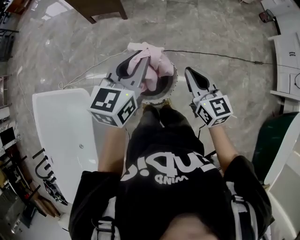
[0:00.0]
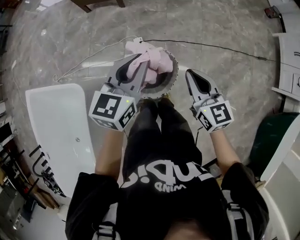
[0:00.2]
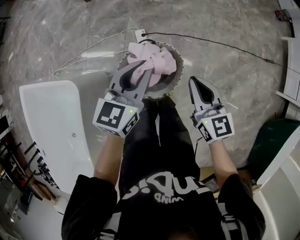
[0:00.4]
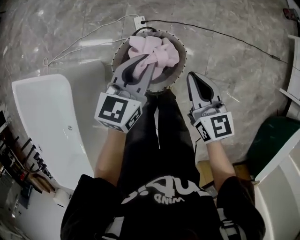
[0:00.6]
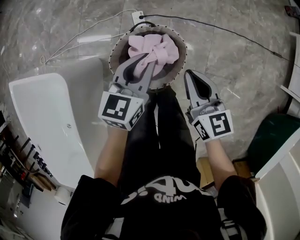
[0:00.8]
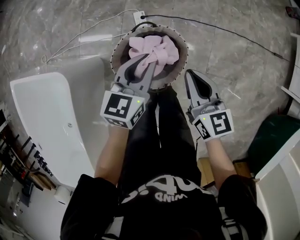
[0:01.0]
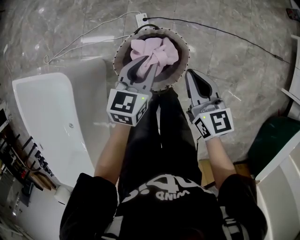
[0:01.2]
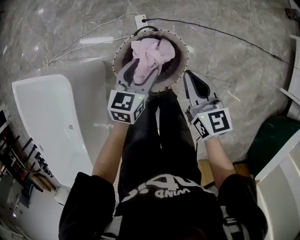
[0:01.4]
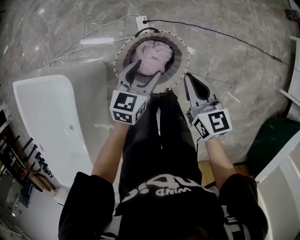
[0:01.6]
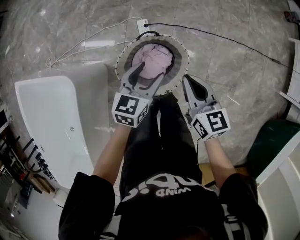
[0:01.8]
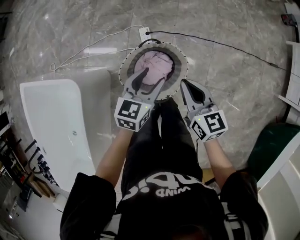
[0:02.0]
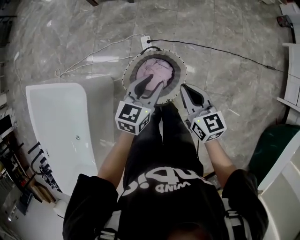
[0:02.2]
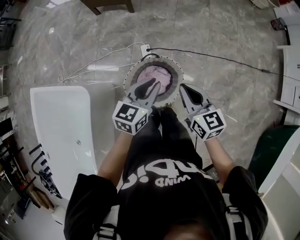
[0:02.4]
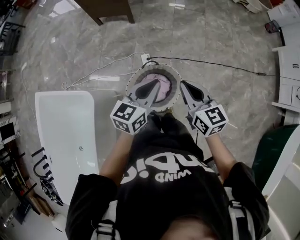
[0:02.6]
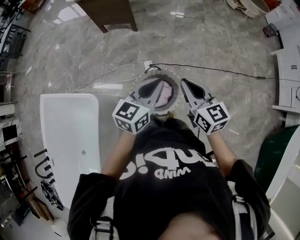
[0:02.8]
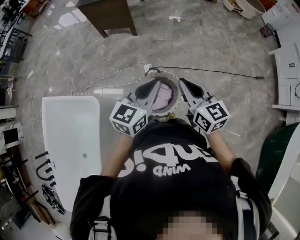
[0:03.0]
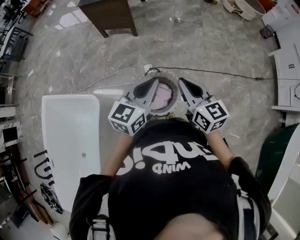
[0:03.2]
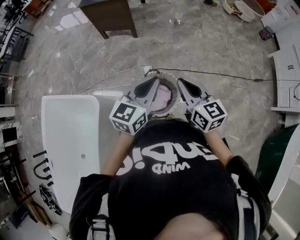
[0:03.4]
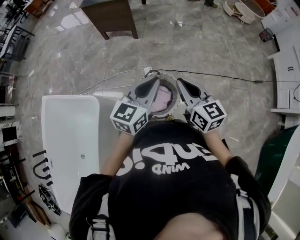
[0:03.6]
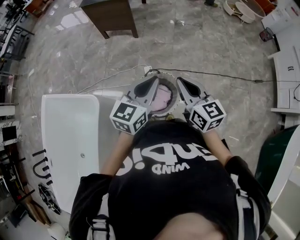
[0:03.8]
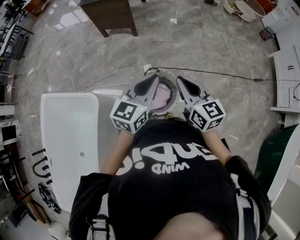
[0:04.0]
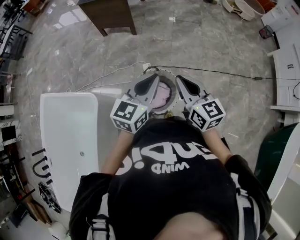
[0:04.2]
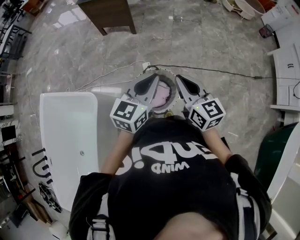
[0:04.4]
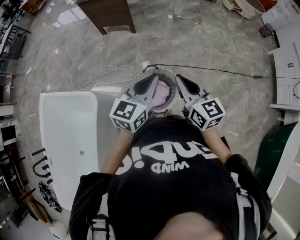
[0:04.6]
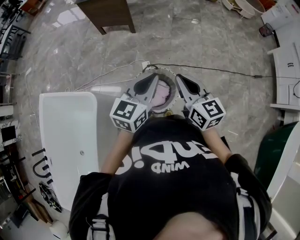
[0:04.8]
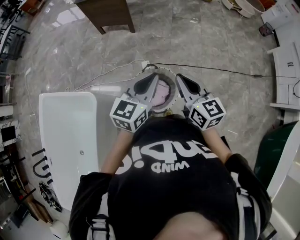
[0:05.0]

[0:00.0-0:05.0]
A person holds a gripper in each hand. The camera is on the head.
0:00.0 to 0:01.6: The right gripper heads downward, covering roughly 20 cm; the left gripper shifts roughly 35 cm downward, and opens its fingers.
0:01.6 to 0:03.4: Both grippers move upward, roughly 25 cm. The left gripper rotates about 20 degrees, and closes its fingers.
0:03.4 to 0:05.0: The two grippers keep their place.

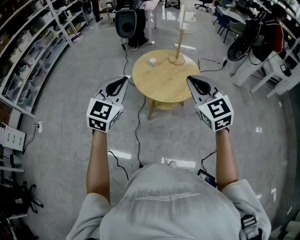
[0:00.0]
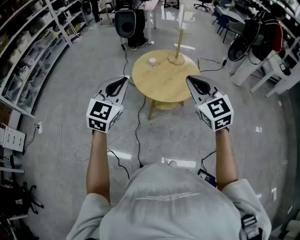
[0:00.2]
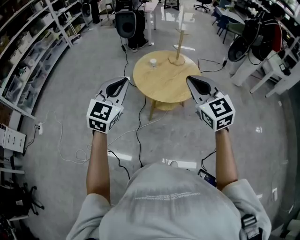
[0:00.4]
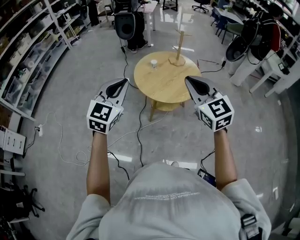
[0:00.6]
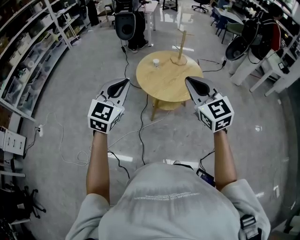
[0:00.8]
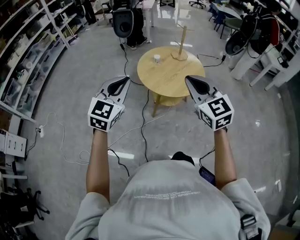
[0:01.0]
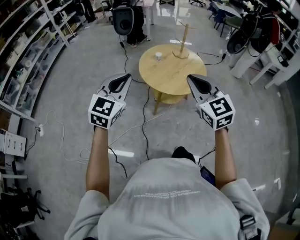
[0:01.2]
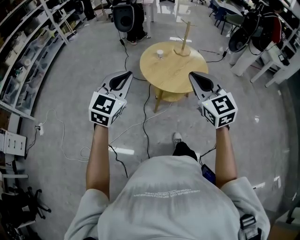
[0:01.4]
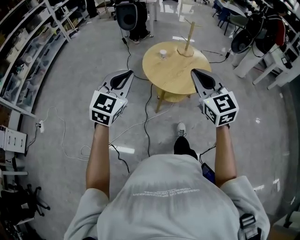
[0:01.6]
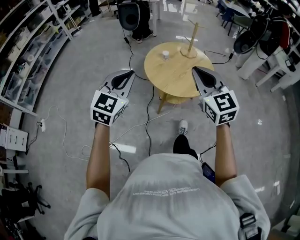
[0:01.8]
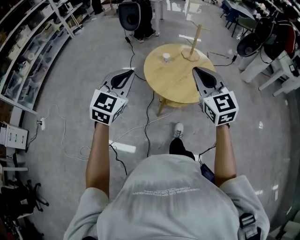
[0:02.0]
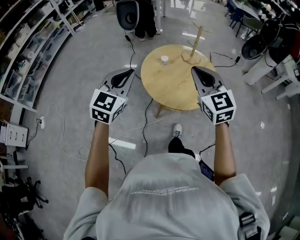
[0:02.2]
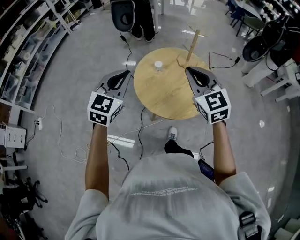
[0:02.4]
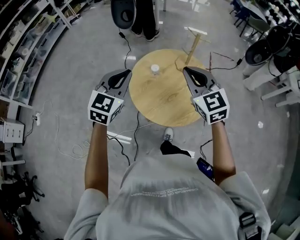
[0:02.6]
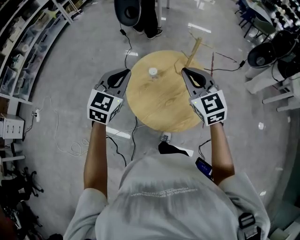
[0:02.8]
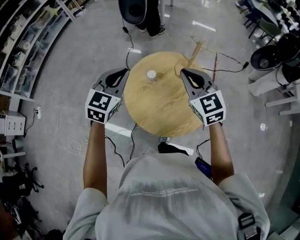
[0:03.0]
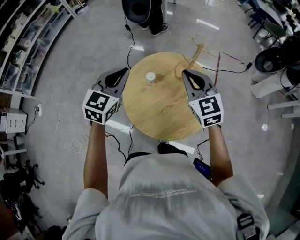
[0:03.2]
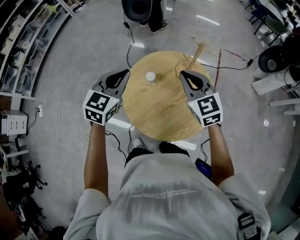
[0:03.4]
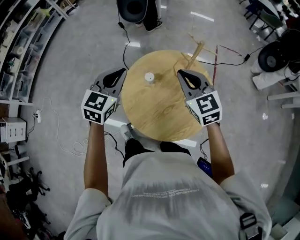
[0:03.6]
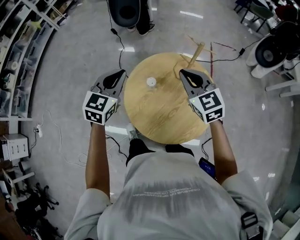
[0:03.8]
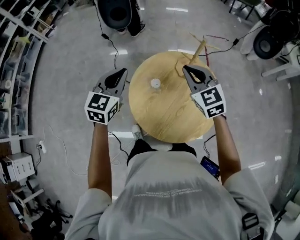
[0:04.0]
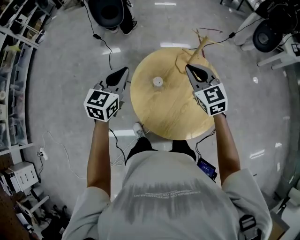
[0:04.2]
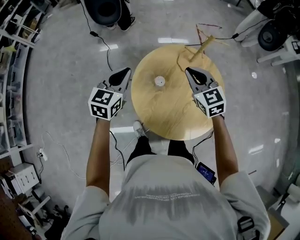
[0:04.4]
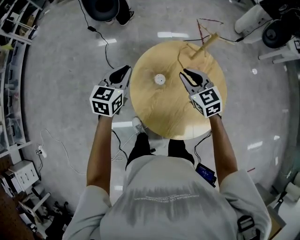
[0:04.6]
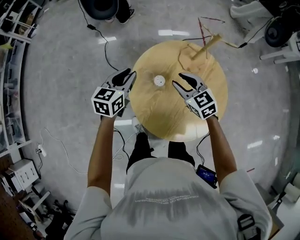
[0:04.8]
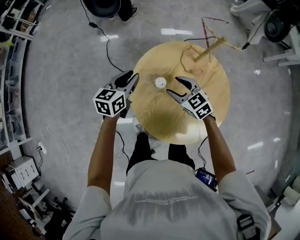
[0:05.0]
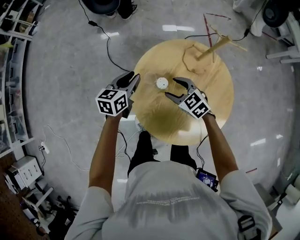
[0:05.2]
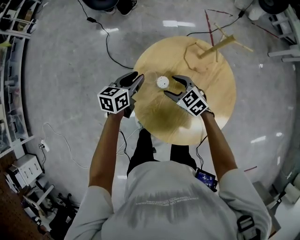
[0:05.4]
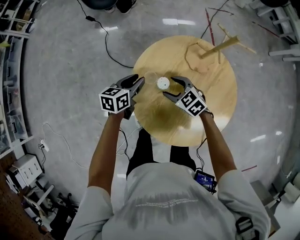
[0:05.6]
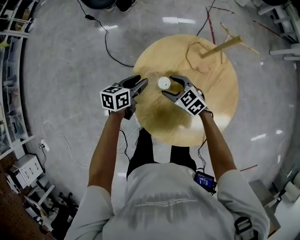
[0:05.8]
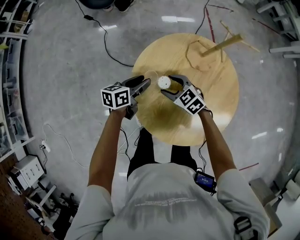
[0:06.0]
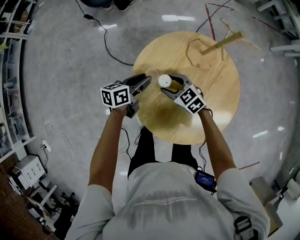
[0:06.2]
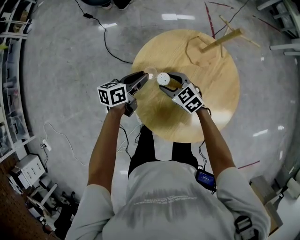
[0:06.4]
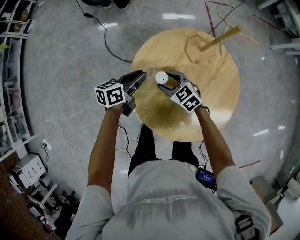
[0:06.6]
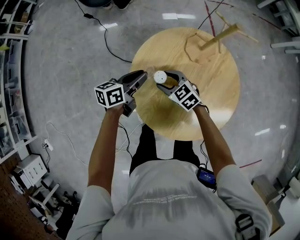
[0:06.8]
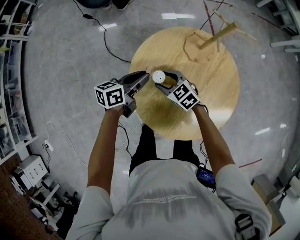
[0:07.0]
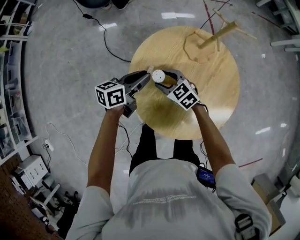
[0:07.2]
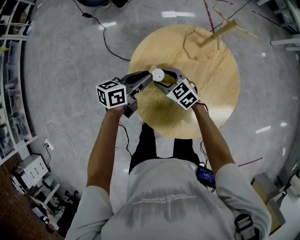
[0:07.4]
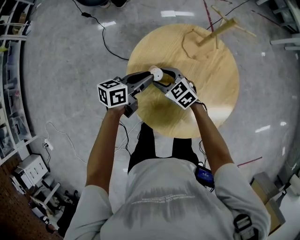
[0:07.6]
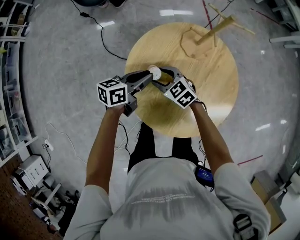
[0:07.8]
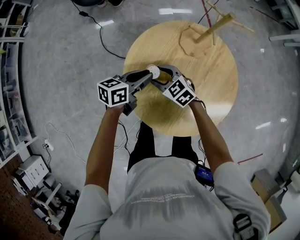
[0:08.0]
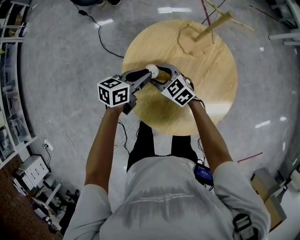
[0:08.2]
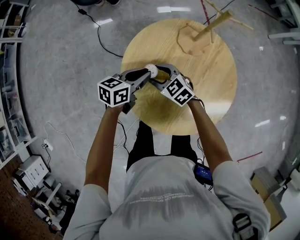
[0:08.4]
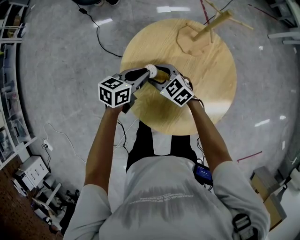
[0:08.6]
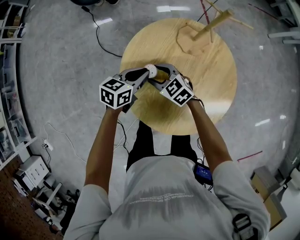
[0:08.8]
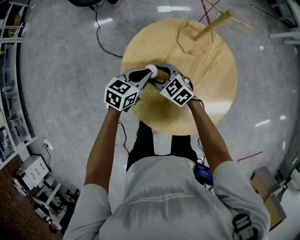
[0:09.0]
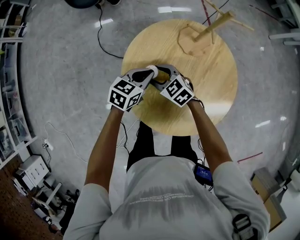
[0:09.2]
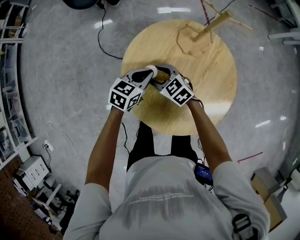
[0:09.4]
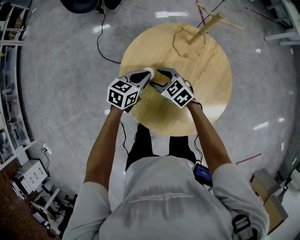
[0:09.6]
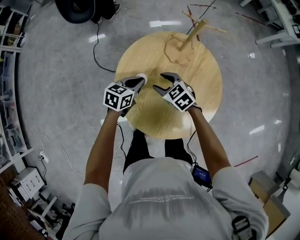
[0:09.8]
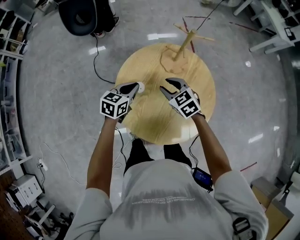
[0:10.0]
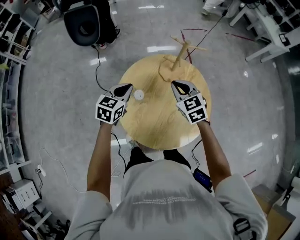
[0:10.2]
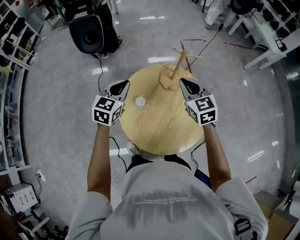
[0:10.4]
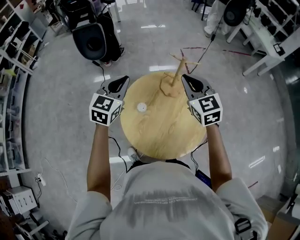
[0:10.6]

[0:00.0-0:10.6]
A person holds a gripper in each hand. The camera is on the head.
0:00.0 to 0:01.6: The two grippers go approximately 10 cm to the left.
0:01.6 to 0:03.0: The two grippers go about 40 cm forward.
0:03.0 to 0:04.6: The left gripper goes about 25 cm forward and downward, and changes its angle by about 30 degrees, while the right gripper moves downward and forward, approximately 20 cm, and swivels some 30 degrees.
0:04.6 to 0:06.0: The left gripper moves downward, approximately 15 cm, changes its angle by approximately 40 degrees, and opens up, while the right gripper is displaced downward and to the left by roughly 20 cm, turns by some 30 degrees, and opens up.
0:06.0 to 0:07.6: The left gripper changes place by roughly 5 cm, and closes up.
0:07.6 to 0:09.0: The left gripper swivels some 30 degrees.
0:09.0 to 0:10.6: The left gripper is displaced upward by roughly 30 cm, and turns by about 40 degrees, while the right gripper shifts approximately 40 cm upward and to the right, rotates about 40 degrees, and closes its fingers.

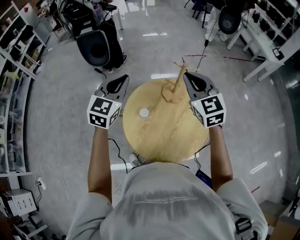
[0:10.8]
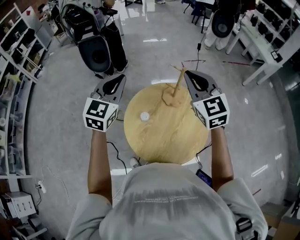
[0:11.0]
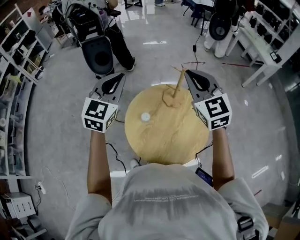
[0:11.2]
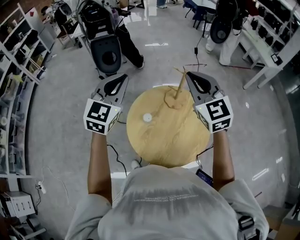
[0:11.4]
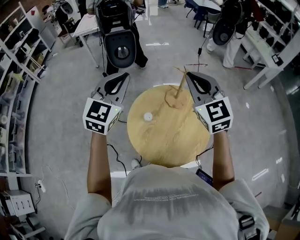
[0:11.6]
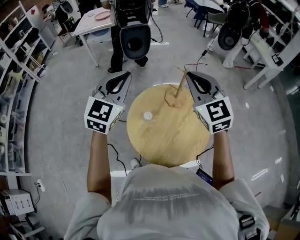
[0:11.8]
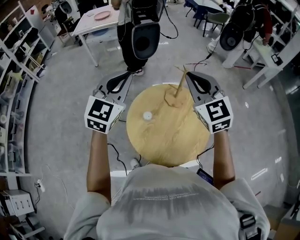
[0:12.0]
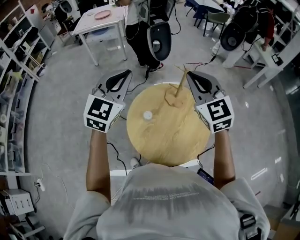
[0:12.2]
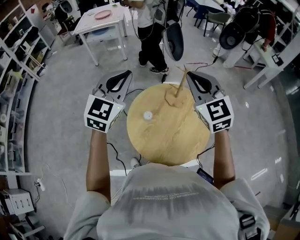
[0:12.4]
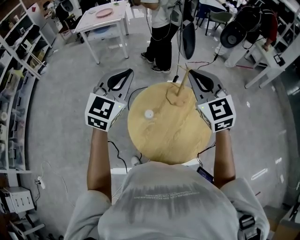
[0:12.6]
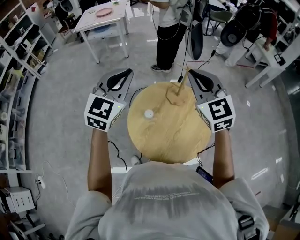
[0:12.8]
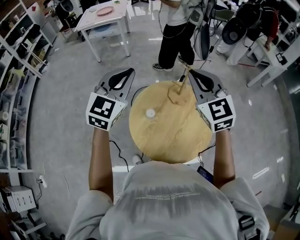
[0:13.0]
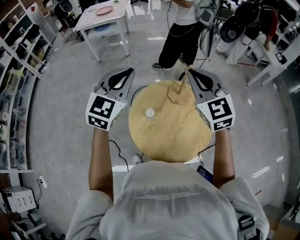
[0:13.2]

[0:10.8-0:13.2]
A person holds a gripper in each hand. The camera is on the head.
0:10.8 to 0:12.0: Both grippers move upward, roughly 10 cm.
0:12.0 to 0:13.2: There are only small adjustments of the grippers.

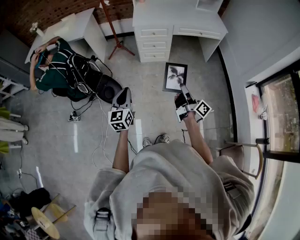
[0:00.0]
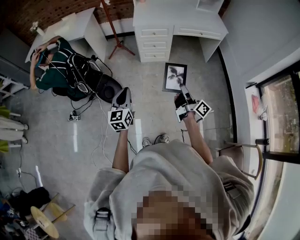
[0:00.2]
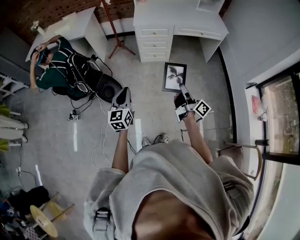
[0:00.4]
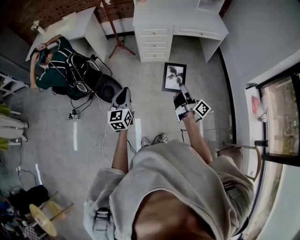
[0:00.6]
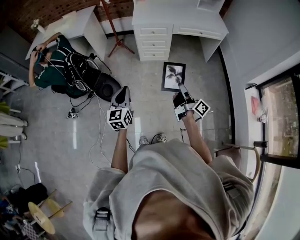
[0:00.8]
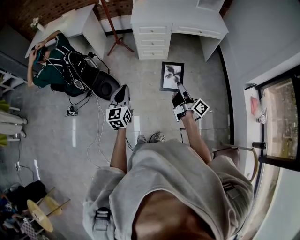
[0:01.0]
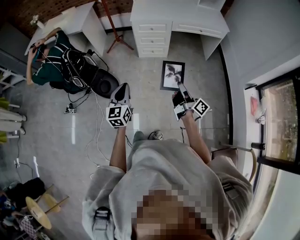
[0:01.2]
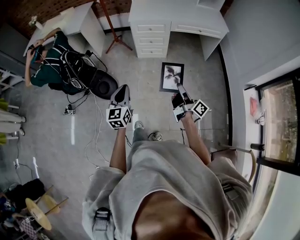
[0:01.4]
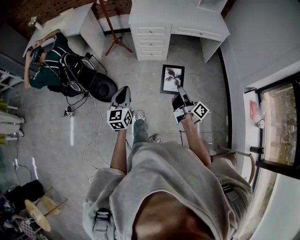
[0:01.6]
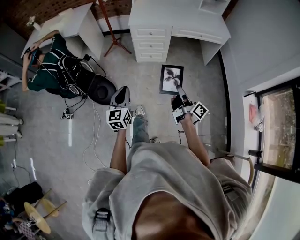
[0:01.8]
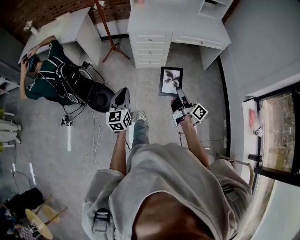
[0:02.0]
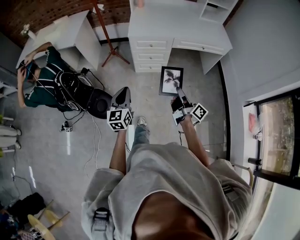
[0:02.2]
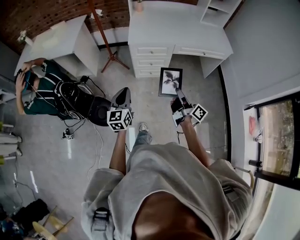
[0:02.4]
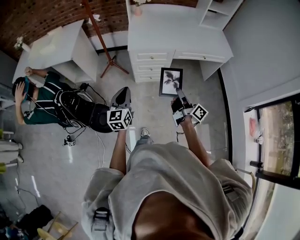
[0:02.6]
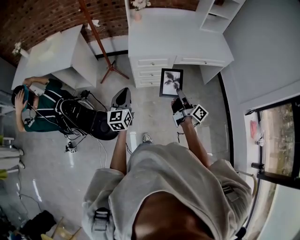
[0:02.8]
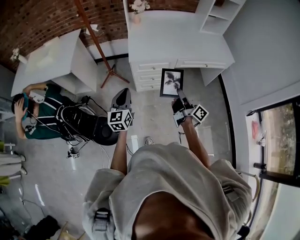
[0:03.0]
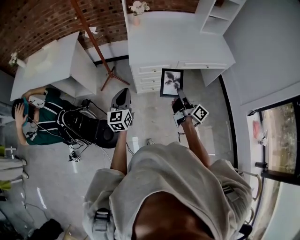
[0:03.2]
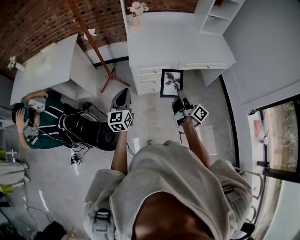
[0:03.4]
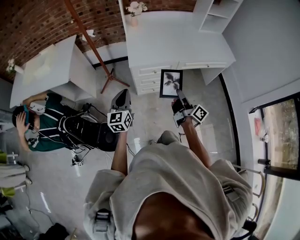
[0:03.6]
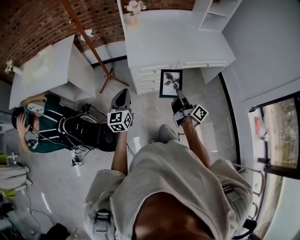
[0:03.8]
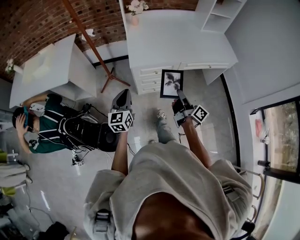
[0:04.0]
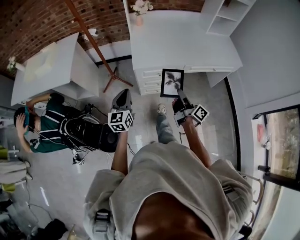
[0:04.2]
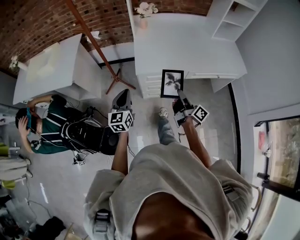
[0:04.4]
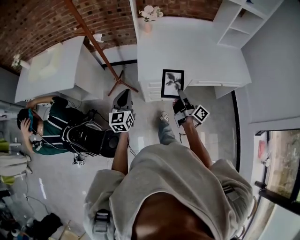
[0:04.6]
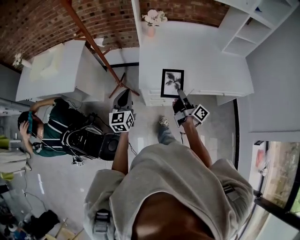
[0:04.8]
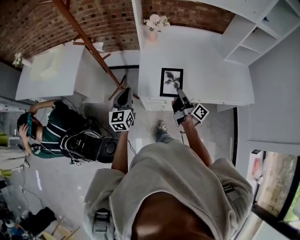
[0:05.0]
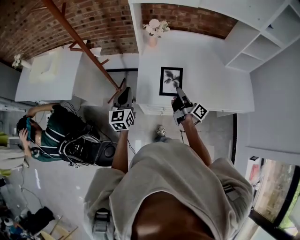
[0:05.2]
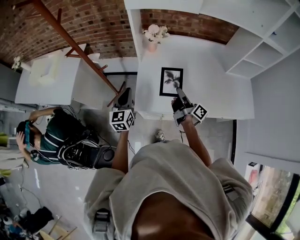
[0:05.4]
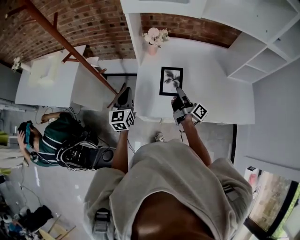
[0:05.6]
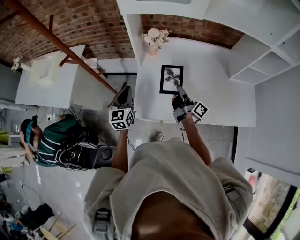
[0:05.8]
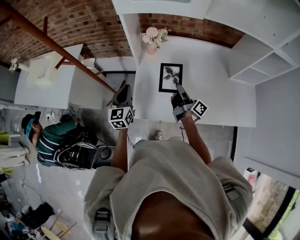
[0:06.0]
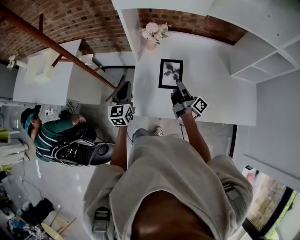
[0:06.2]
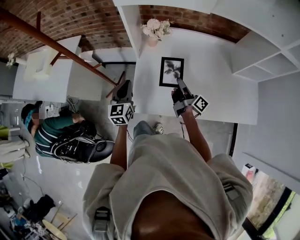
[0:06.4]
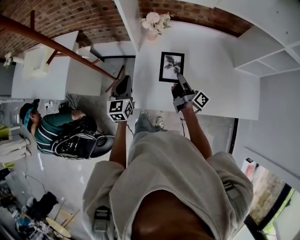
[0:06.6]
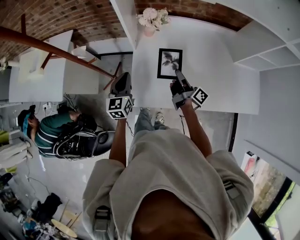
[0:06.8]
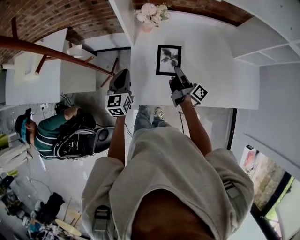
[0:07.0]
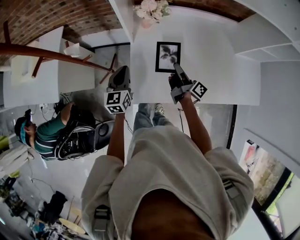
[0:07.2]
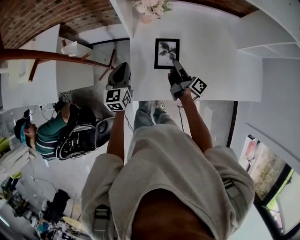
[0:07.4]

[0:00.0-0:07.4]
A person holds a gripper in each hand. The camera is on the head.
0:00.0 to 0:01.4: The two grippers go some 5 cm to the right.
0:01.4 to 0:03.0: The two grippers go roughly 40 cm forward.
0:03.0 to 0:04.4: Both grippers move forward, some 15 cm.
0:04.4 to 0:06.0: Both grippers travel together forward, roughly 40 cm.
0:06.0 to 0:07.4: The right gripper heads downward, covering some 10 cm, while the left gripper heads downward and forward, covering approximately 10 cm.
